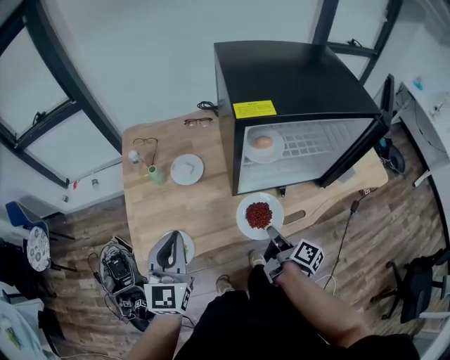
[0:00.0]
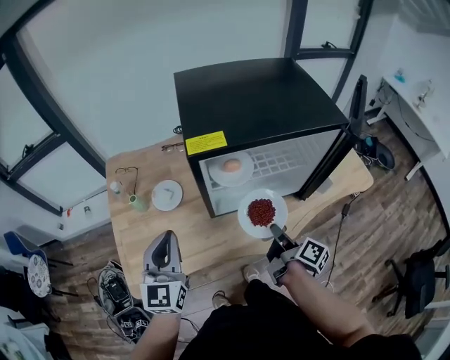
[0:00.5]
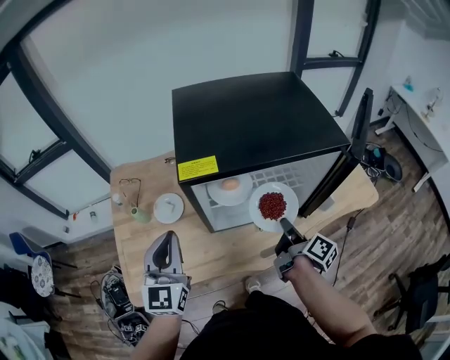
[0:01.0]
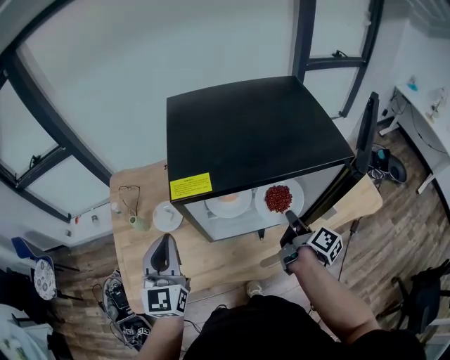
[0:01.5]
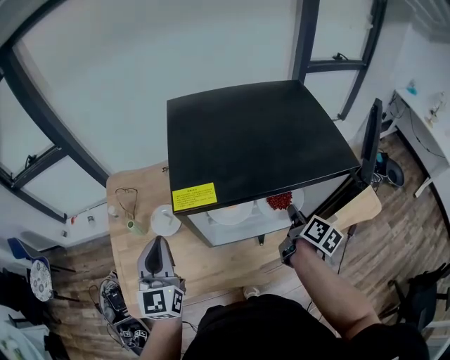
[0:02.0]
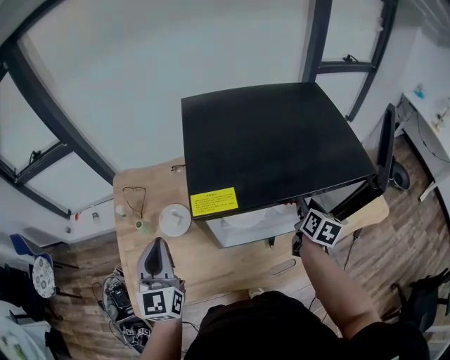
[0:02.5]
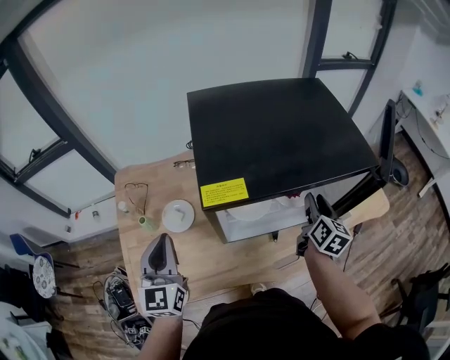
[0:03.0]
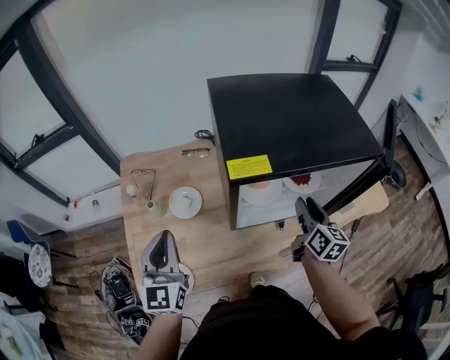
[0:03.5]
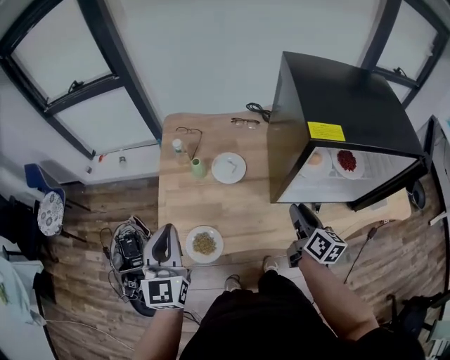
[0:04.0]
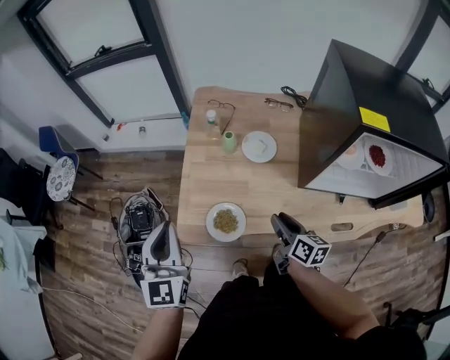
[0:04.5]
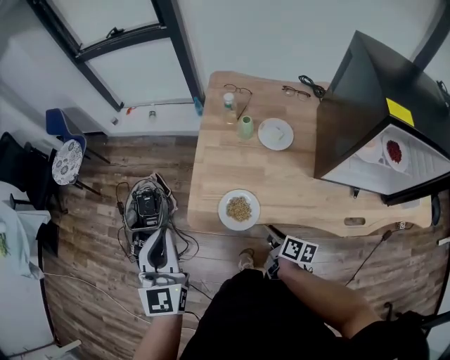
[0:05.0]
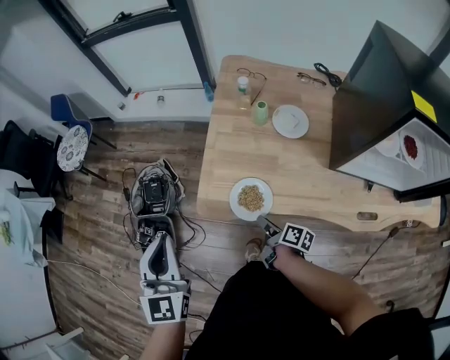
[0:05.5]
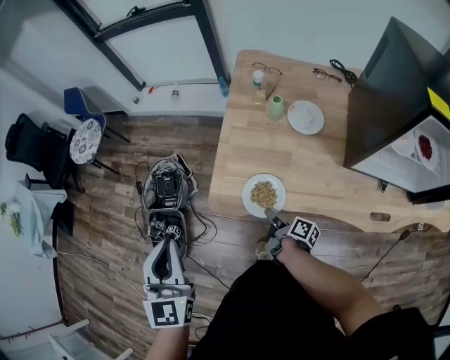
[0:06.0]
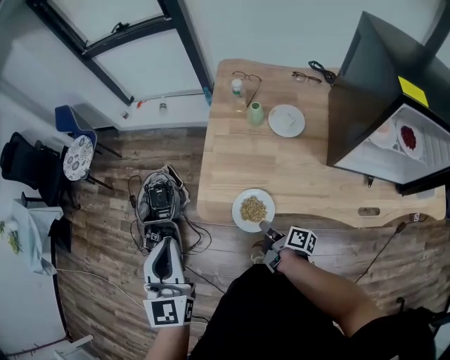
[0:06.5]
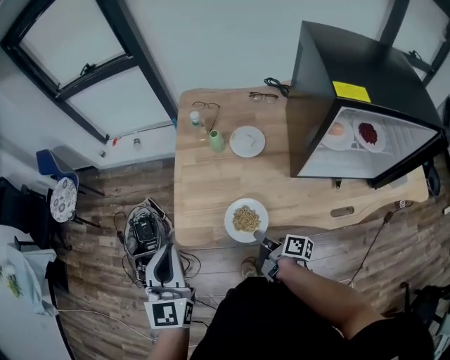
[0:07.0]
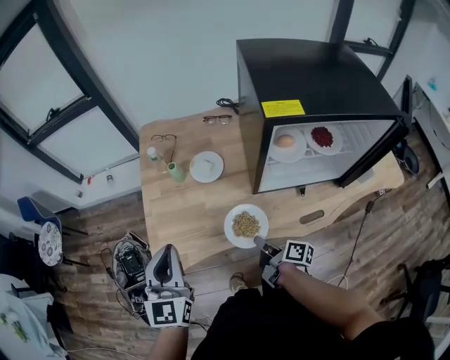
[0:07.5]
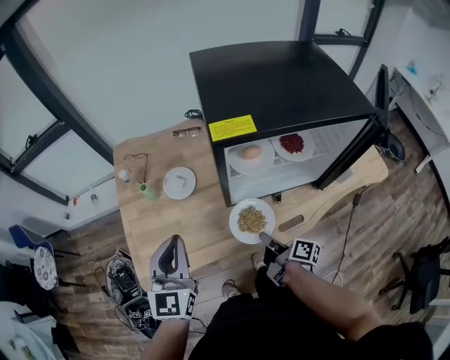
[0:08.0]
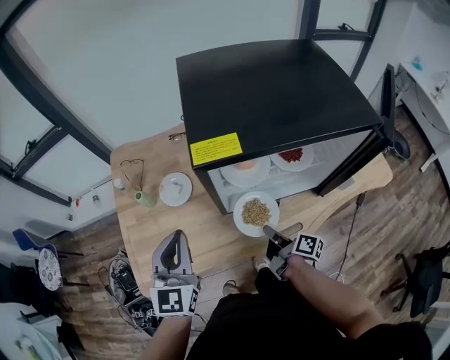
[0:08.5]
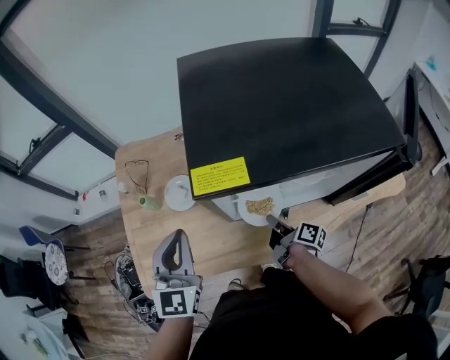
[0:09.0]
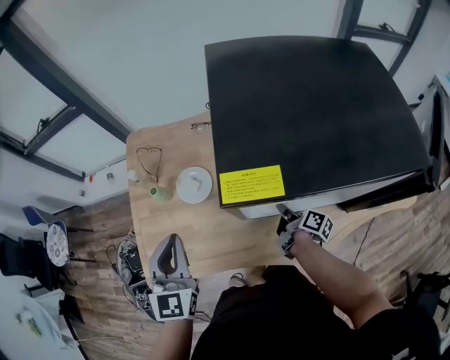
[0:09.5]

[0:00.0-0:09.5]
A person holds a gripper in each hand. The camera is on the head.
0:00.0 to 0:02.0: The left gripper heads forward and to the right, covering approximately 15 cm. The right gripper is displaced forward, to the right and upward by approximately 30 cm, and changes its angle by roughly 20 degrees.
0:02.0 to 0:04.0: The grippers both shift to the left and backward by approximately 25 cm. The right gripper rotates roughly 30 degrees, and opens up.
0:04.0 to 0:05.5: The right gripper changes place by approximately 40 cm, and turns by approximately 50 degrees, while the left gripper ends up roughly 20 cm from where it was.
0:05.5 to 0:07.5: The left gripper goes some 20 cm to the right, and swivels some 20 degrees, while the right gripper moves to the right and upward, about 20 cm, swivels approximately 20 degrees, and closes.
0:07.5 to 0:09.5: The right gripper heads to the right and forward, covering some 25 cm; the left gripper goes approximately 20 cm forward and to the right.

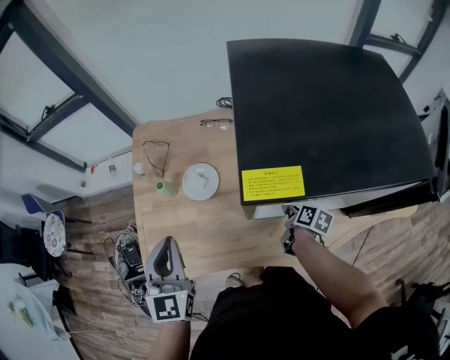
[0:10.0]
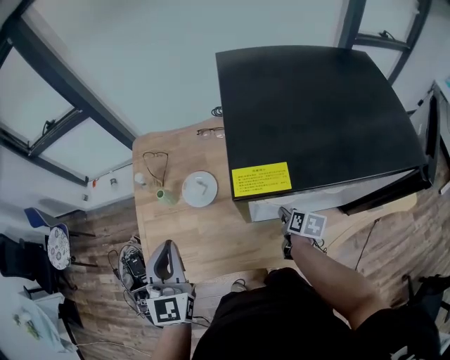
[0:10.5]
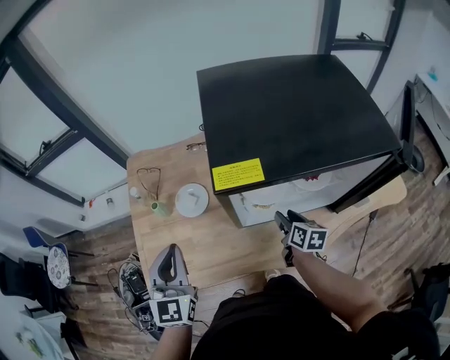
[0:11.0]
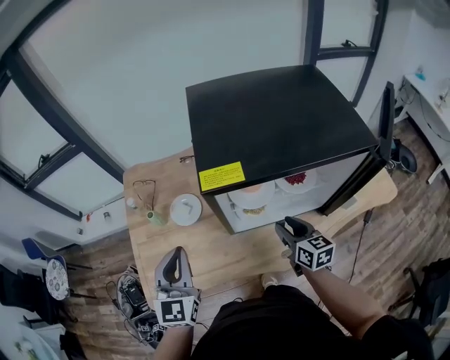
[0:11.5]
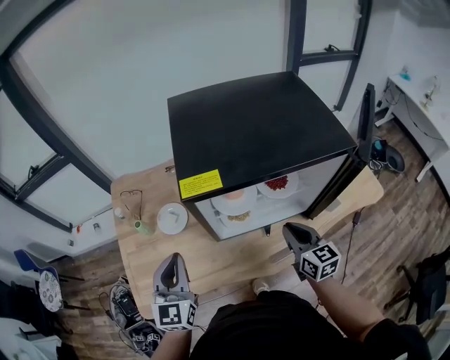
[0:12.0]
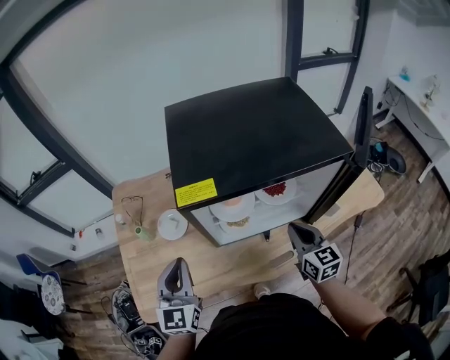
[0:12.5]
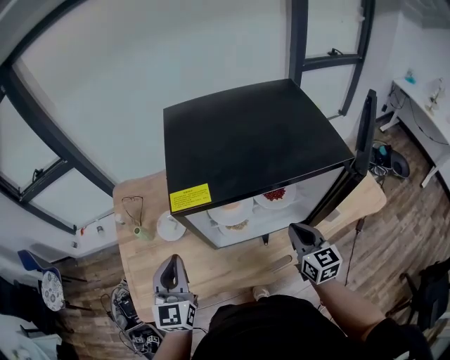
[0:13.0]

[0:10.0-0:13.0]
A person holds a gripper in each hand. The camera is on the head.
0:10.0 to 0:11.5: The left gripper travels to the right by roughly 5 cm. Meanwhile the right gripper shifts about 15 cm upward and backward, and turns by some 40 degrees.
0:11.5 to 0:13.0: The right gripper is displaced to the right and upward by some 10 cm, and closes up.

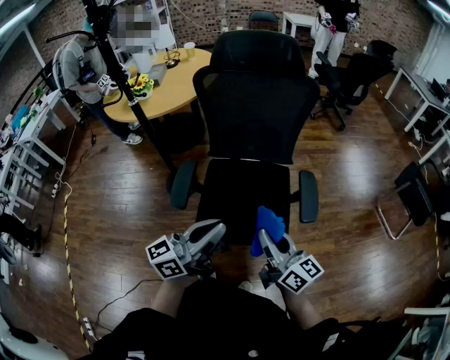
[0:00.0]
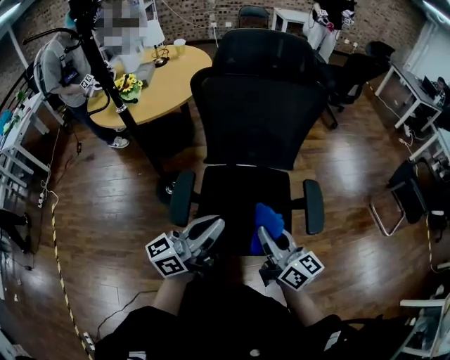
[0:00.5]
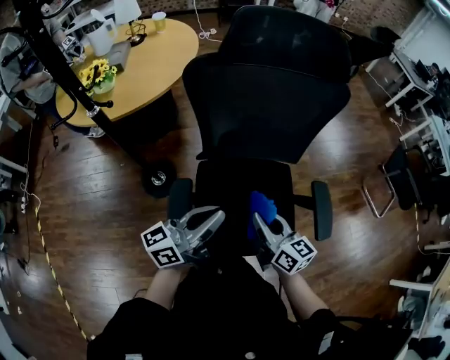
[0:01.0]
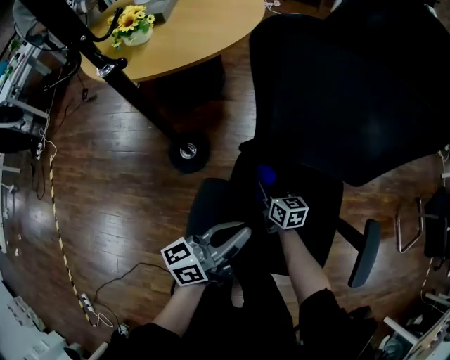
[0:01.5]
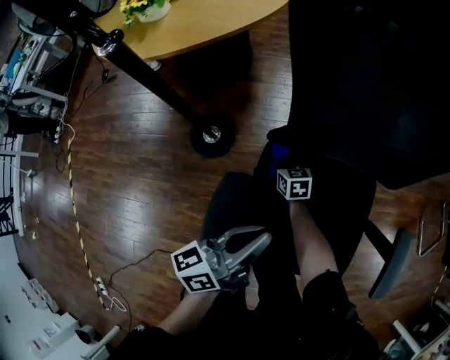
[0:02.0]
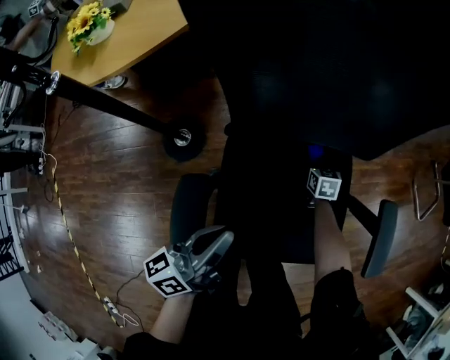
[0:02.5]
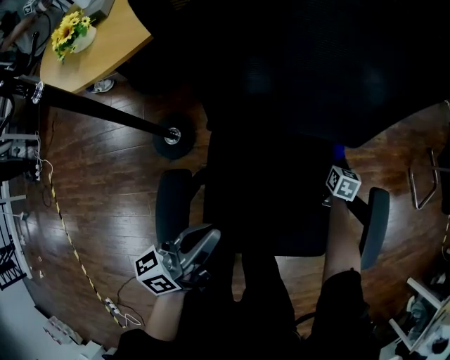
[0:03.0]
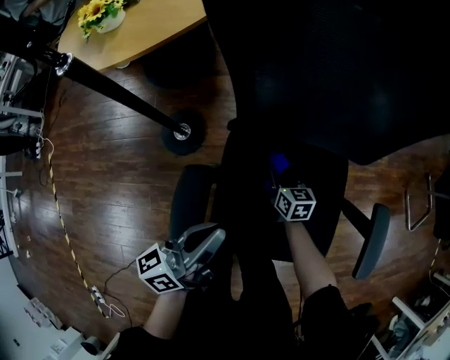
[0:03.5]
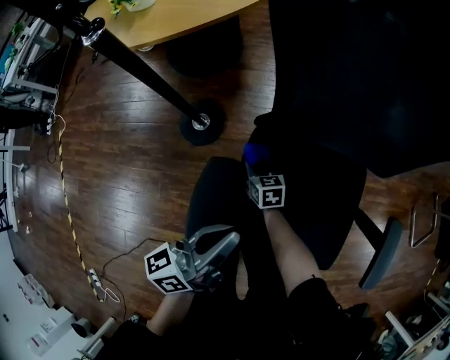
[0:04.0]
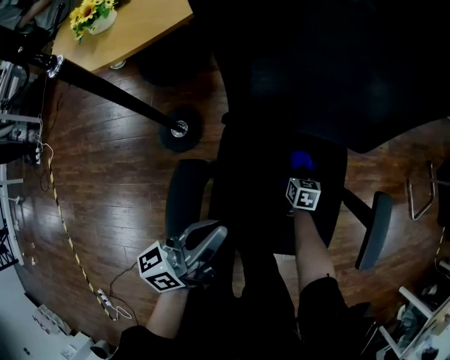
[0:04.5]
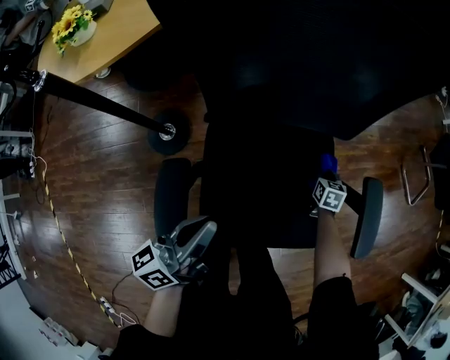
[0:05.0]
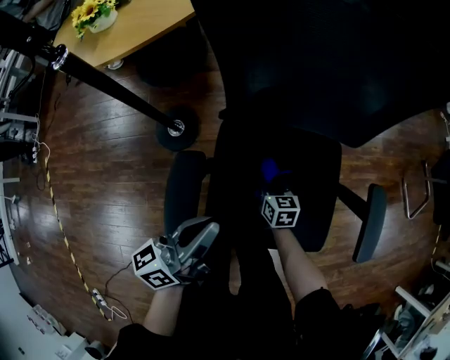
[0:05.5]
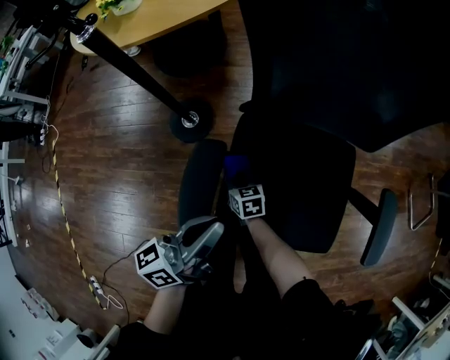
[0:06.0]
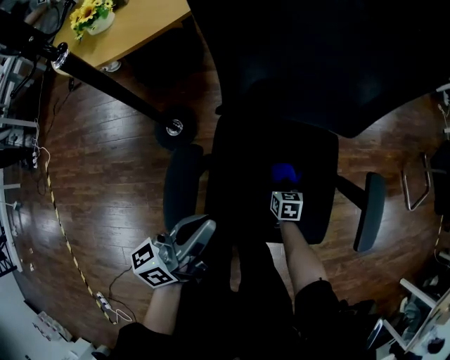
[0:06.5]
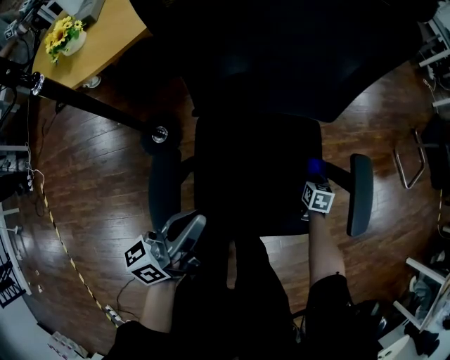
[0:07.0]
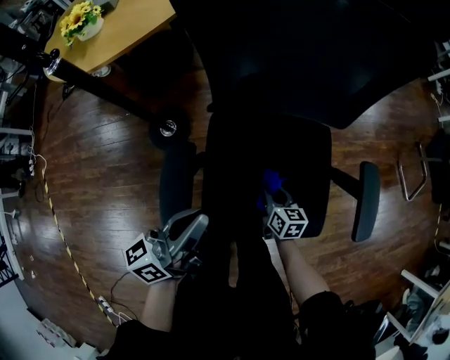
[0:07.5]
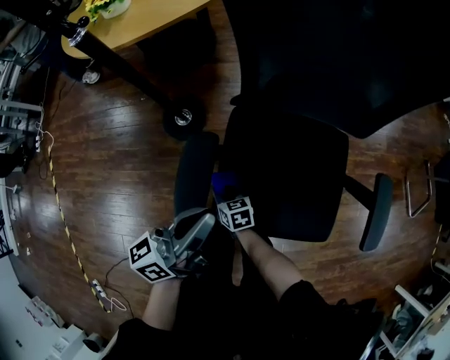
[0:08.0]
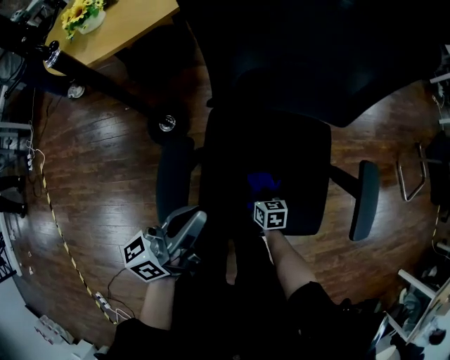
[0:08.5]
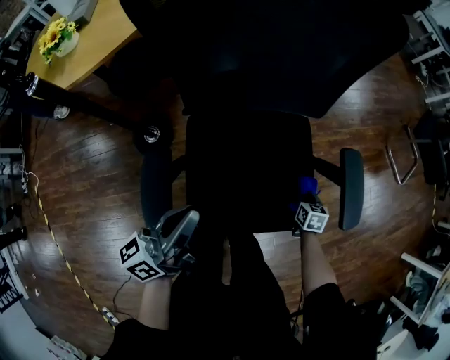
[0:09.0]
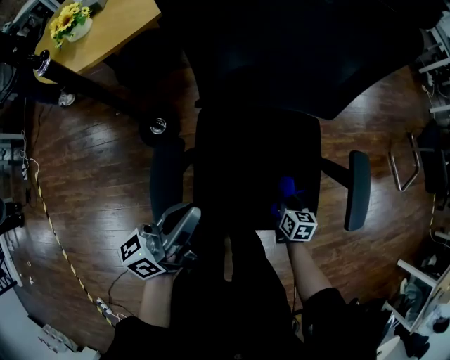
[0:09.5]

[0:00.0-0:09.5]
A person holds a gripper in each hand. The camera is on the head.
0:00.0 to 0:02.0: The left gripper travels forward, downward and to the left by some 40 cm, and swivels approximately 30 degrees; the right gripper goes some 70 cm forward, downward and to the left, and tilts its fingers roughly 50 degrees downward.
0:05.5 to 0:07.5: The right gripper goes downward and returns, some 5 cm each way.
0:07.5 to 0:09.5: The right gripper reaches roughly 10 cm downward, then returns.

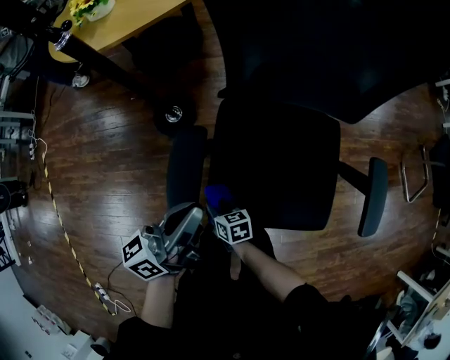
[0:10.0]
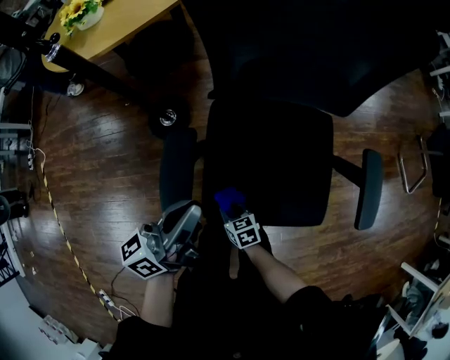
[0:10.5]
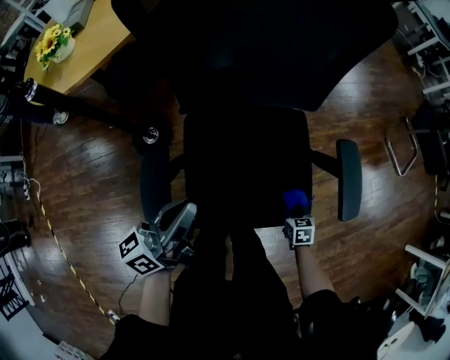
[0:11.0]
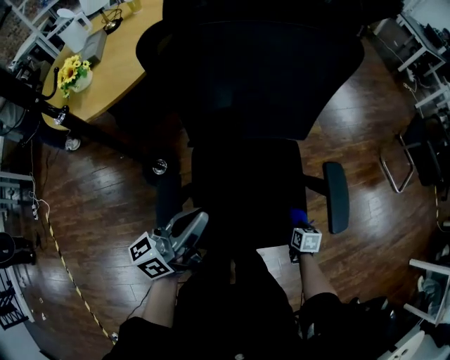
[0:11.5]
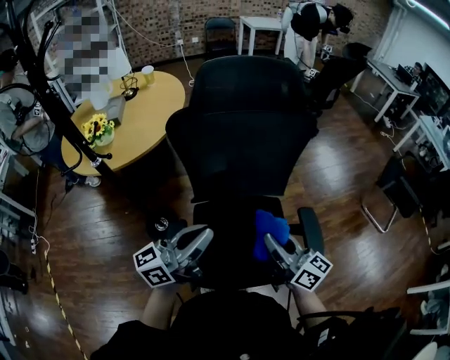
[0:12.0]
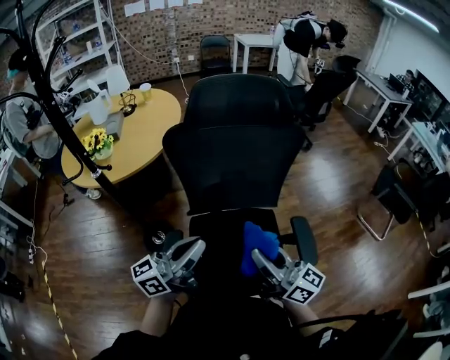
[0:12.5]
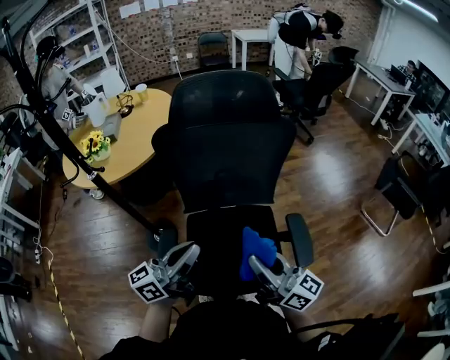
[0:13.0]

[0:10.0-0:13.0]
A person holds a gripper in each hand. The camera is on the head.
0:10.0 to 0:11.5: The right gripper shifts by some 40 cm, and changes its angle by approximately 40 degrees; the left gripper shifts by some 10 cm.
0:11.5 to 0:13.0: The left gripper moves upward, about 15 cm; the right gripper goes roughly 50 cm upward, and points its fingers approximately 80 degrees further upward.

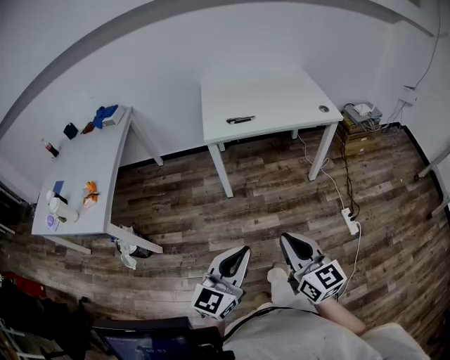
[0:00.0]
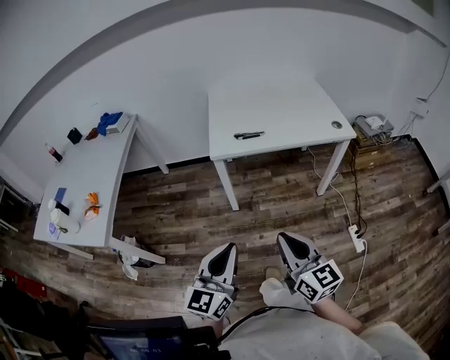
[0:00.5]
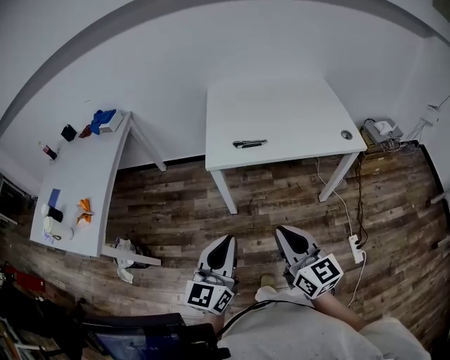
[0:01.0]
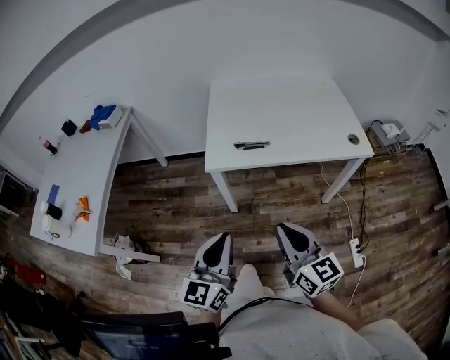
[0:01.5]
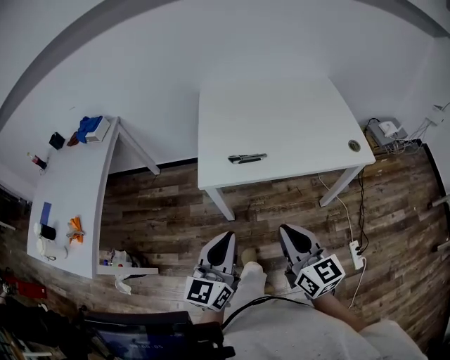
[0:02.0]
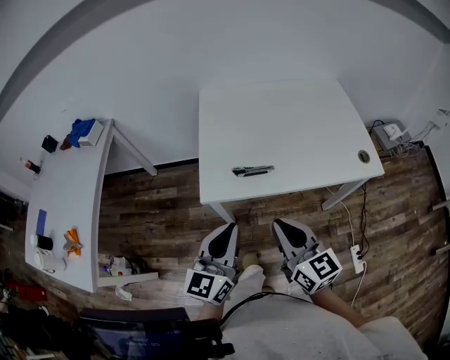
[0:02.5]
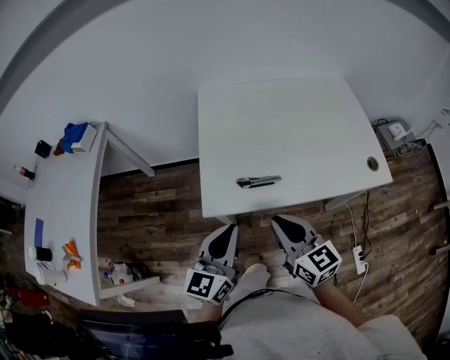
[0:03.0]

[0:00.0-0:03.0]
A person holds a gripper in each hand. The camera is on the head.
0:00.0 to 0:01.5: The two grippers go roughly 30 cm forward.
0:01.5 to 0:03.0: Both grippers move forward, approximately 25 cm.
